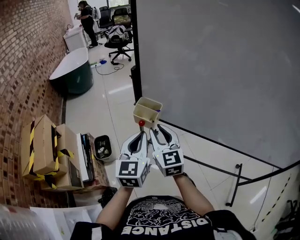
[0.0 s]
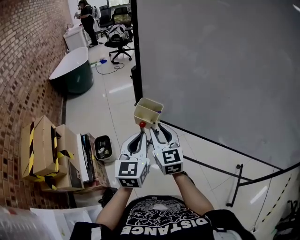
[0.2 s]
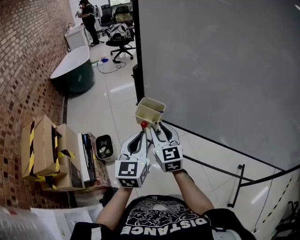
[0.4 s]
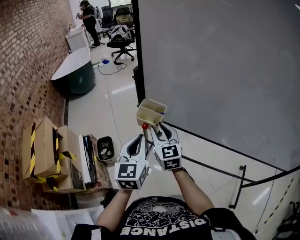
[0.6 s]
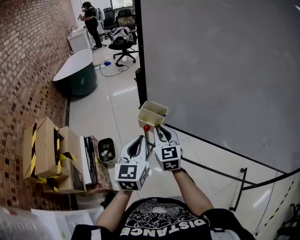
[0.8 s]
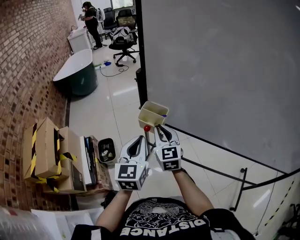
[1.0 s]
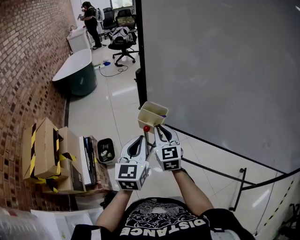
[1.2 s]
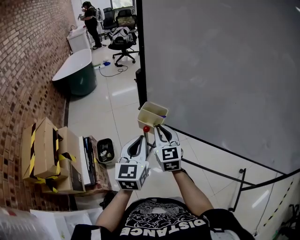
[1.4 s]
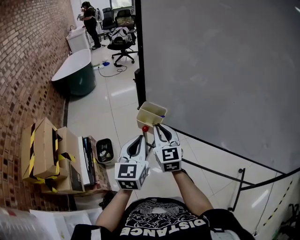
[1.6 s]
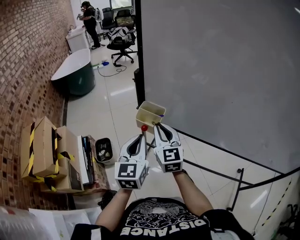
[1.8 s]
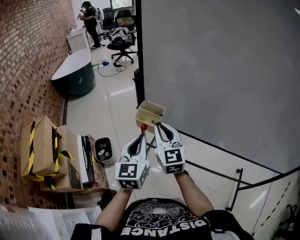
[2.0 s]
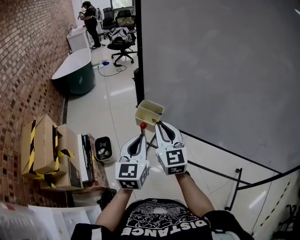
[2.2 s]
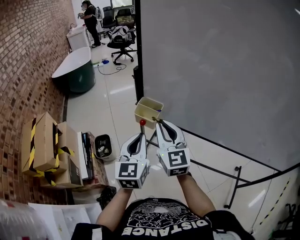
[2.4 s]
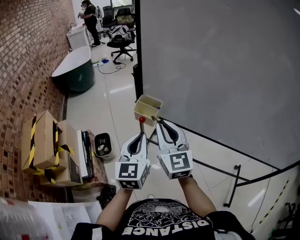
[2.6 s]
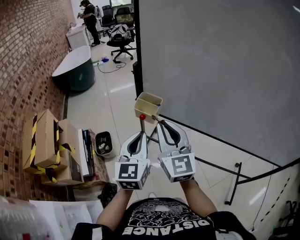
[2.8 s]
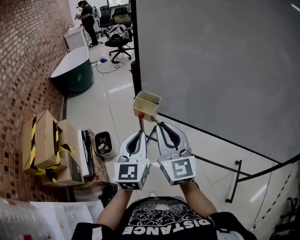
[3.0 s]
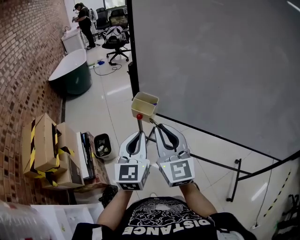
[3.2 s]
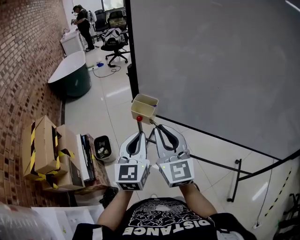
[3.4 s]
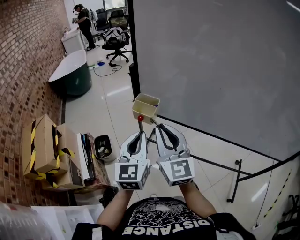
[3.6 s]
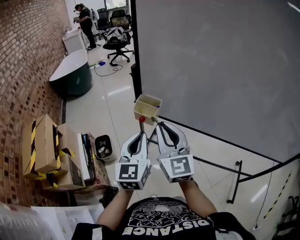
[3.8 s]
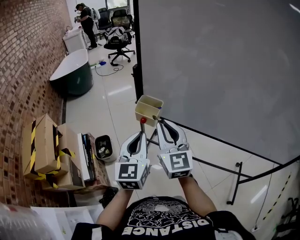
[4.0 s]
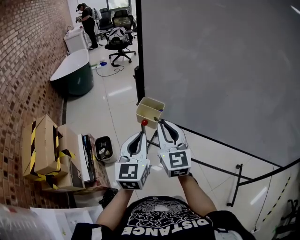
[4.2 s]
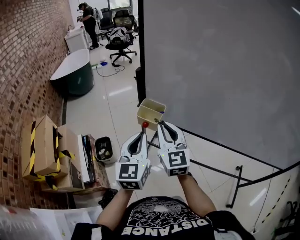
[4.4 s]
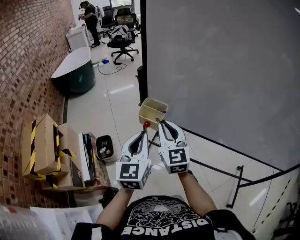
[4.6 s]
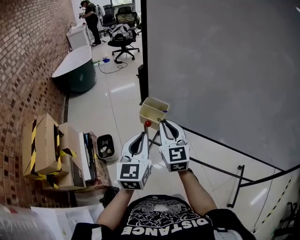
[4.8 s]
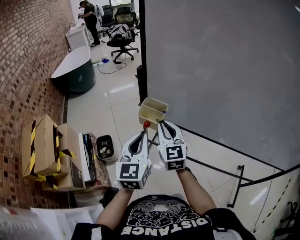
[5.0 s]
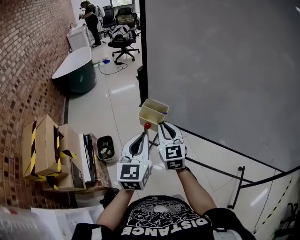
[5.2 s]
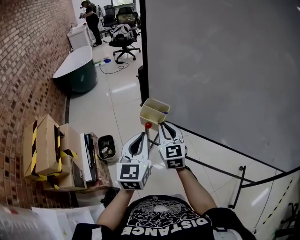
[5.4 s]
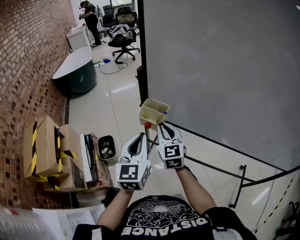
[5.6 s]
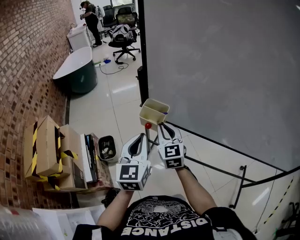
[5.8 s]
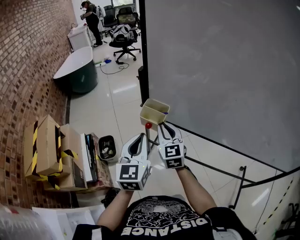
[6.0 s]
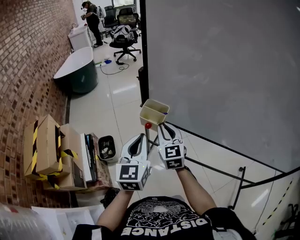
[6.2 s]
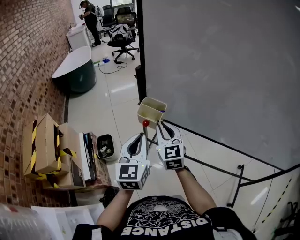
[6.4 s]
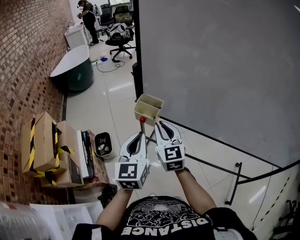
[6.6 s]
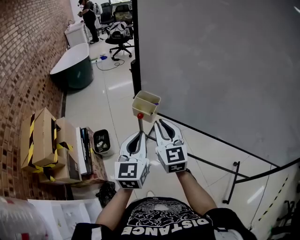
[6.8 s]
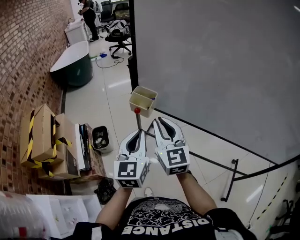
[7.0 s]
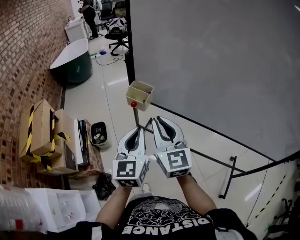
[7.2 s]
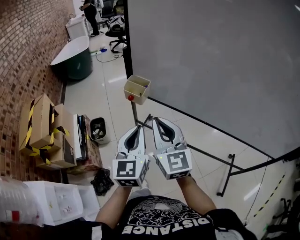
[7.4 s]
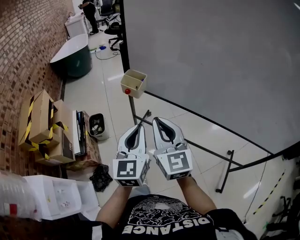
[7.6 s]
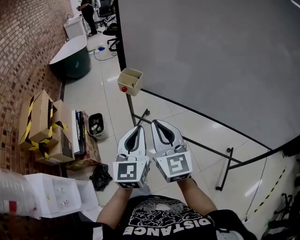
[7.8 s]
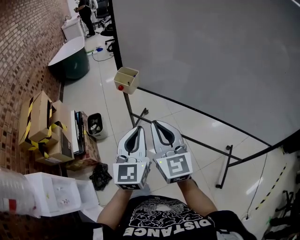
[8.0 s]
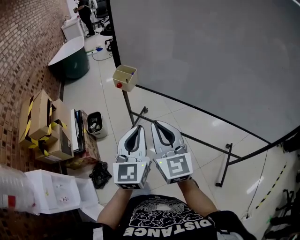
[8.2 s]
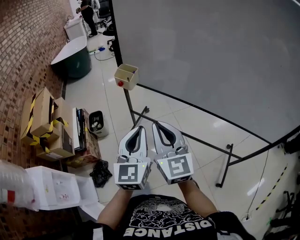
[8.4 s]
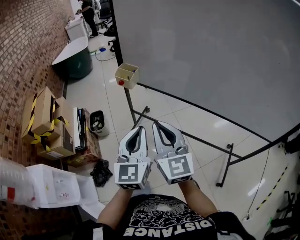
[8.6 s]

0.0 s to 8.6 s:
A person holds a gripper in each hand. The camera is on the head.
0.0 to 1.4 s: The right gripper travels forward by some 5 cm.
1.4 to 2.8 s: The right gripper goes approximately 20 cm upward and backward; the left gripper heads backward, covering approximately 5 cm.
2.8 to 4.4 s: The right gripper is displaced forward and downward by some 10 cm.
4.4 to 5.8 s: The right gripper heads downward and forward, covering approximately 10 cm.
5.8 to 7.2 s: The right gripper is displaced backward and upward by approximately 20 cm. The left gripper goes some 10 cm backward and to the right.
7.2 to 8.6 s: The right gripper travels backward by approximately 20 cm; the left gripper moves backward and to the right, about 20 cm.

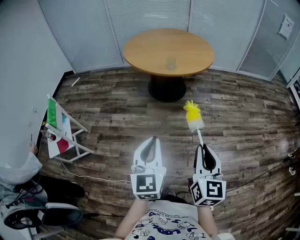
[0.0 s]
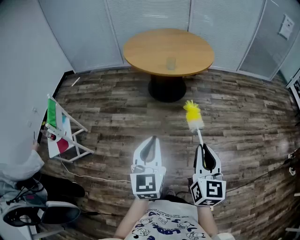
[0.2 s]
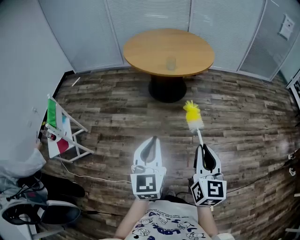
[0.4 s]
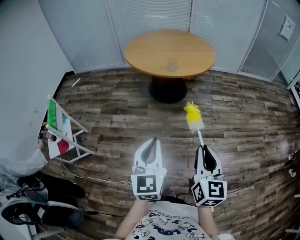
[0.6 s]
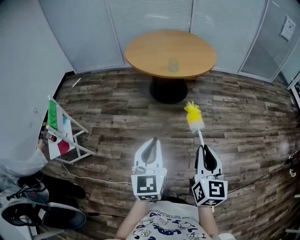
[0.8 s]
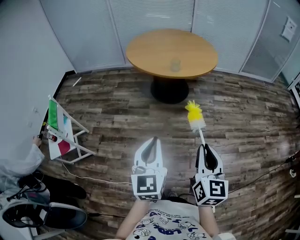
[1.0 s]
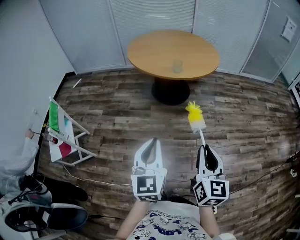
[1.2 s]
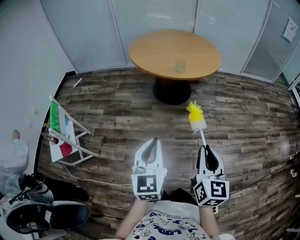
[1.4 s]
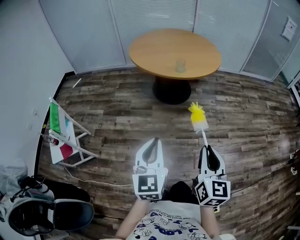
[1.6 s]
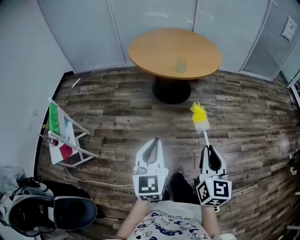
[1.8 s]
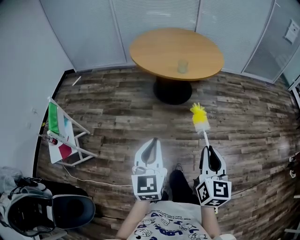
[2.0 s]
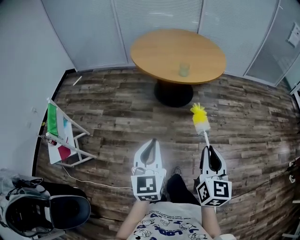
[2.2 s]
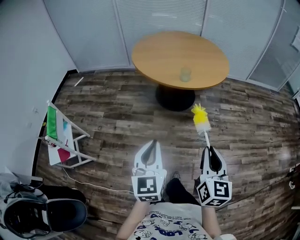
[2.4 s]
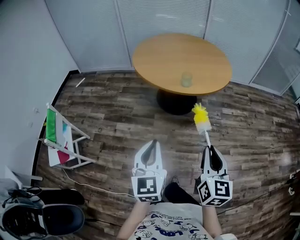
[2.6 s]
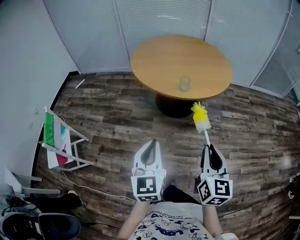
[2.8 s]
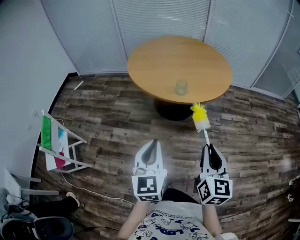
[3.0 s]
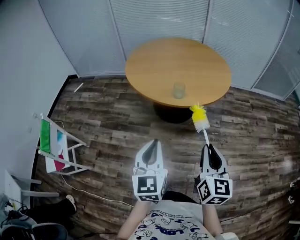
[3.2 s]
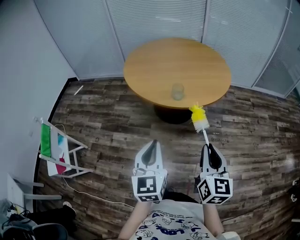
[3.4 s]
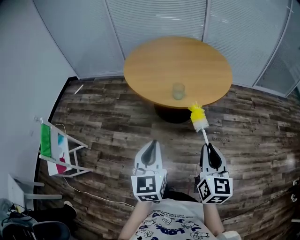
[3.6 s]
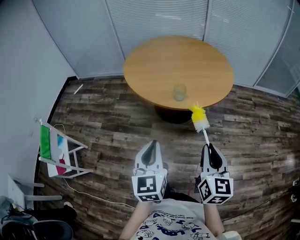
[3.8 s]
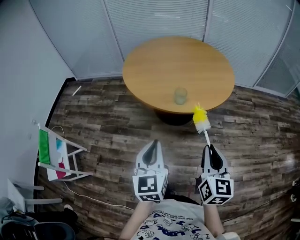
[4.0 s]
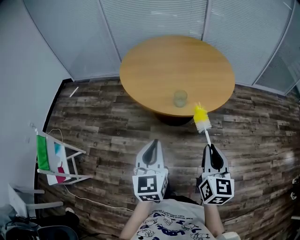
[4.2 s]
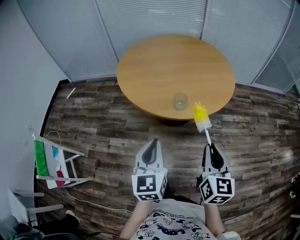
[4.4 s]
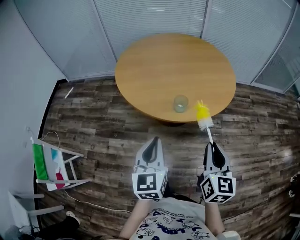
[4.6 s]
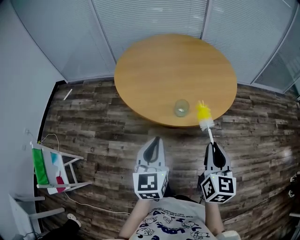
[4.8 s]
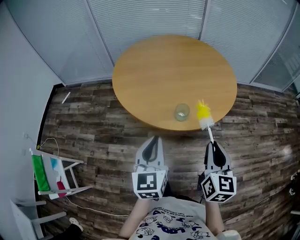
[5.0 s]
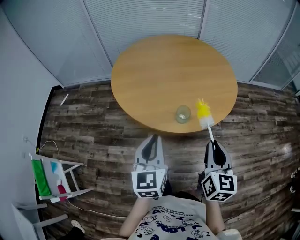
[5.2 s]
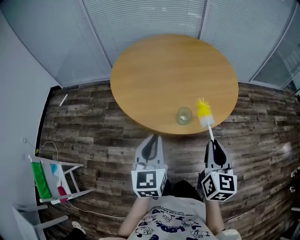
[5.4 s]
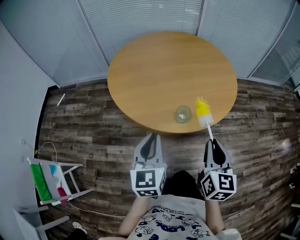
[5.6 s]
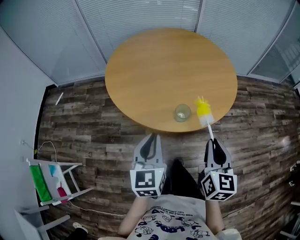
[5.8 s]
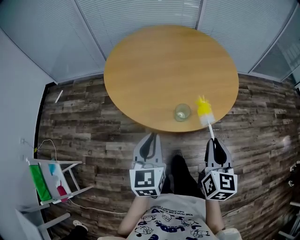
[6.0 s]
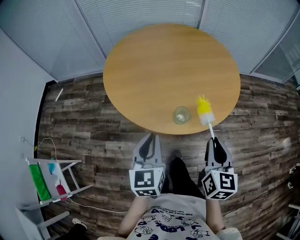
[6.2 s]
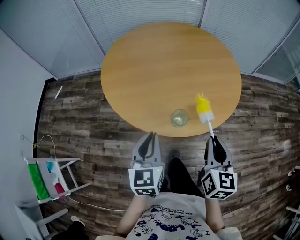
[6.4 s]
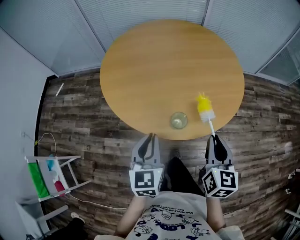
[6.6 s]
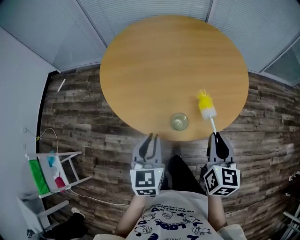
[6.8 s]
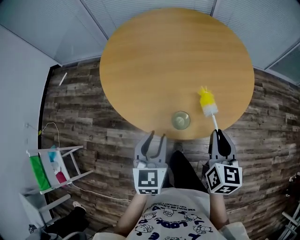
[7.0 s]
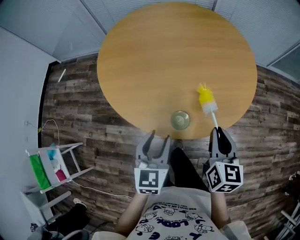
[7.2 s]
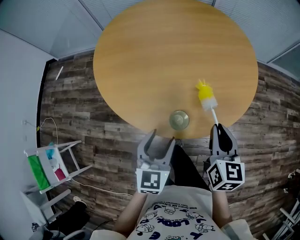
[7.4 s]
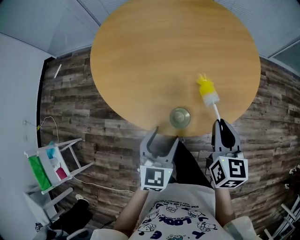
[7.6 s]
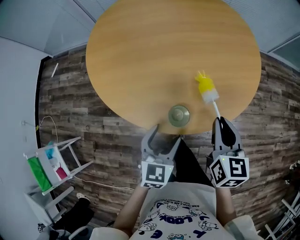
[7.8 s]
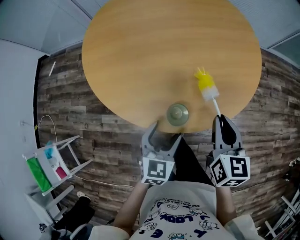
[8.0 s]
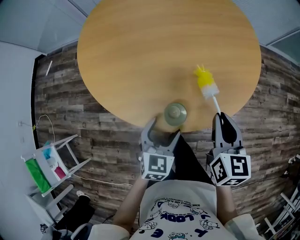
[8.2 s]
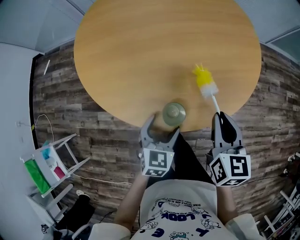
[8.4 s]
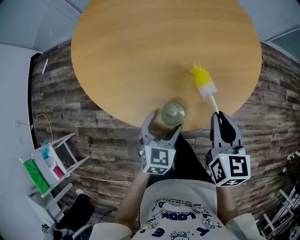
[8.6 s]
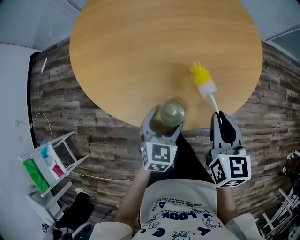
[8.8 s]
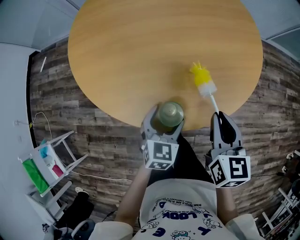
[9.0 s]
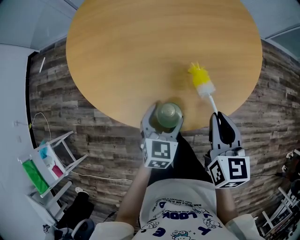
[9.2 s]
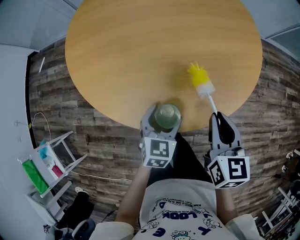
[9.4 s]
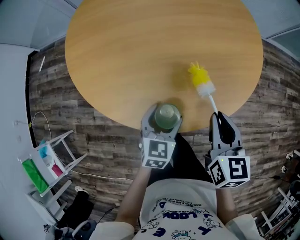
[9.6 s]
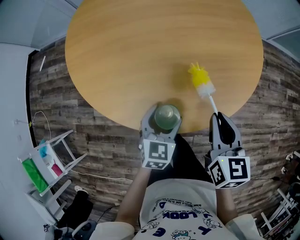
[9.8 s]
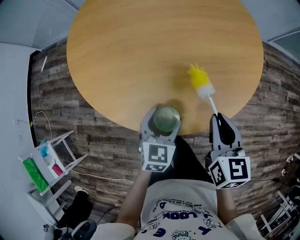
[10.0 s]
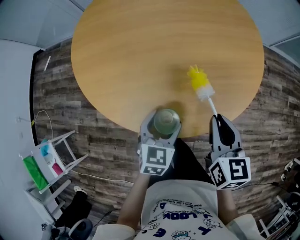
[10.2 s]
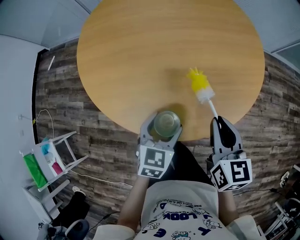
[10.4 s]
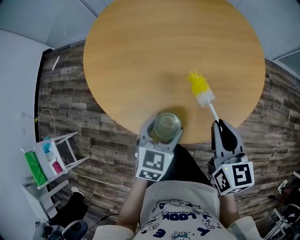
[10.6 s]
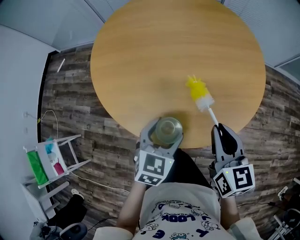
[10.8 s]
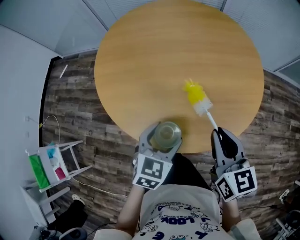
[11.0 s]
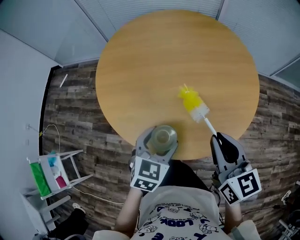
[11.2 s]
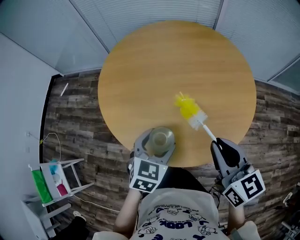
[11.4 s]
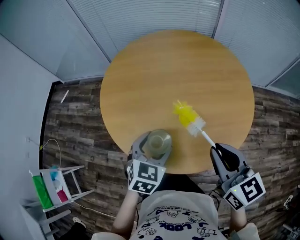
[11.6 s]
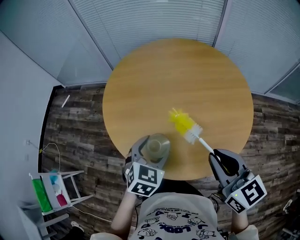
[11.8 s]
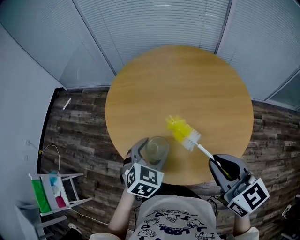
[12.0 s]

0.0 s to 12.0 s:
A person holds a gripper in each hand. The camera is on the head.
0.0 to 1.6 s: Both grippers travel together to the left, some 5 cm.
1.6 to 3.0 s: The grippers both shift forward by some 20 cm.
3.0 to 4.4 s: The grippers both shift forward by some 15 cm.
4.4 to 6.0 s: The two grippers go some 15 cm forward.
6.0 to 7.6 s: The left gripper is displaced downward, to the right and forward by about 15 cm, and opens up, while the right gripper is displaced forward and downward by roughly 15 cm.
7.6 to 9.0 s: The left gripper moves downward and forward, approximately 10 cm.
9.0 to 10.4 s: The grippers make only small movements.
10.4 to 12.0 s: The left gripper shifts roughly 15 cm to the left, upward and forward, and changes its angle by approximately 20 degrees. Meanwhile the right gripper is displaced upward and to the left by some 20 cm, and turns by approximately 30 degrees.

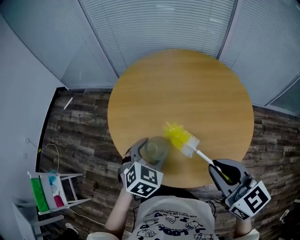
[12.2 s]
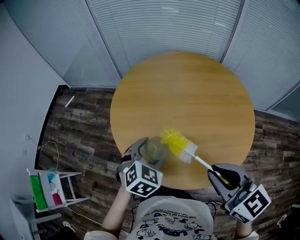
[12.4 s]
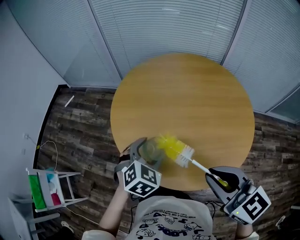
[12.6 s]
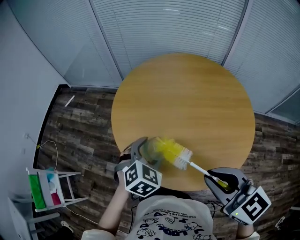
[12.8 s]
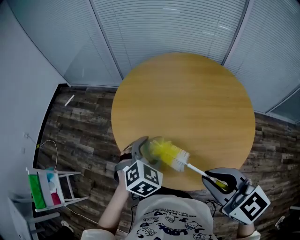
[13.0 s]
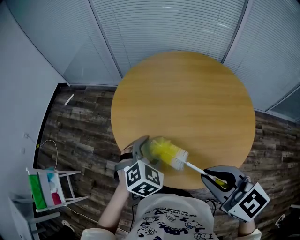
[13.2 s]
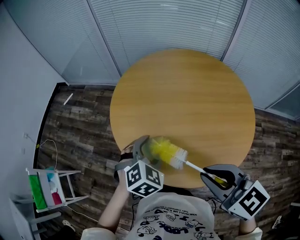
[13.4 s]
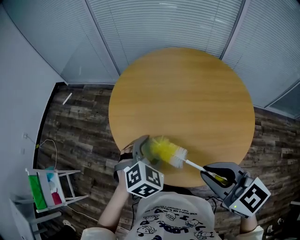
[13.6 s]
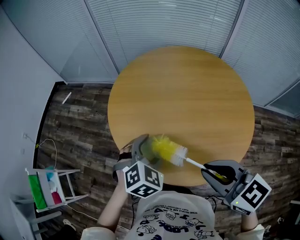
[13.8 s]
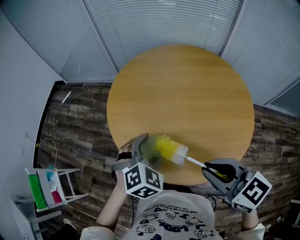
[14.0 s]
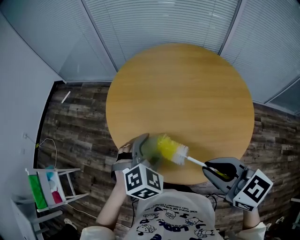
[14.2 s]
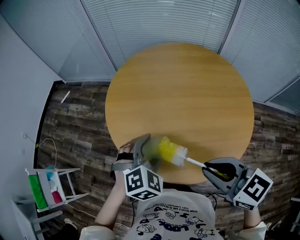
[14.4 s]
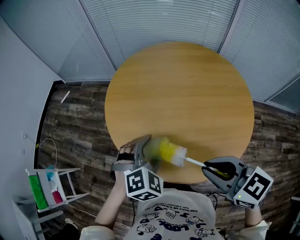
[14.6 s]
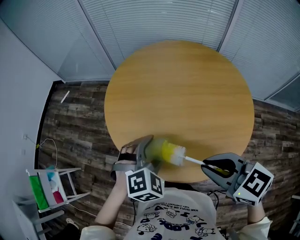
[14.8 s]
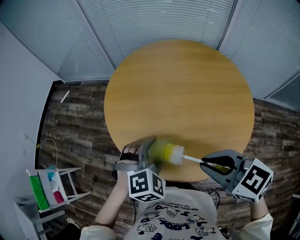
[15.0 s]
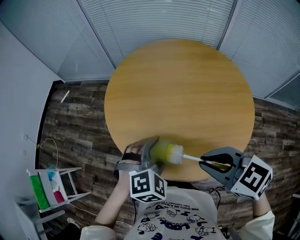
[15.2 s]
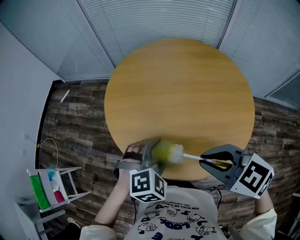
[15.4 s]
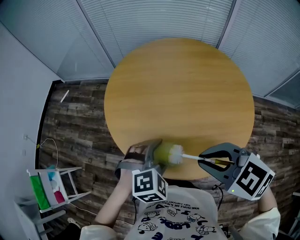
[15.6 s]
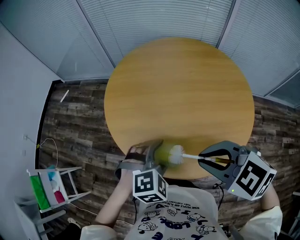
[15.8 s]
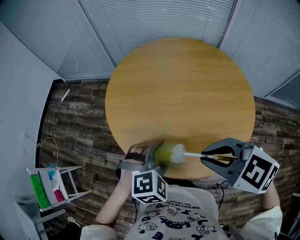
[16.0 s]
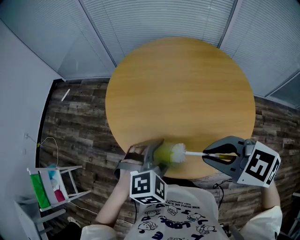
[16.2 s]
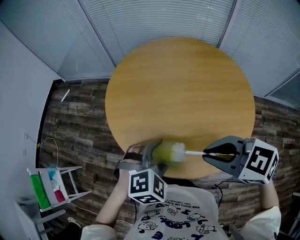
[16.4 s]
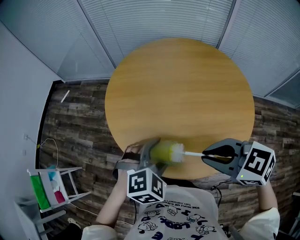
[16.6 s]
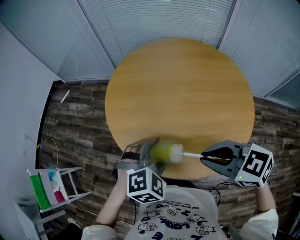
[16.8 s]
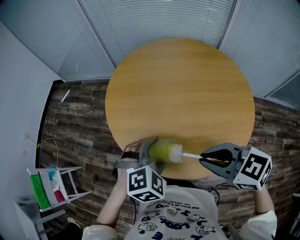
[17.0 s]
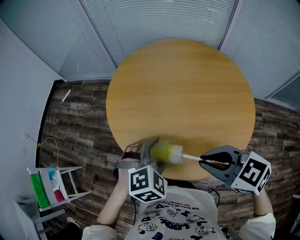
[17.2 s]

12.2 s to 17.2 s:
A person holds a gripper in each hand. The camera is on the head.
12.2 to 13.8 s: The grippers stay close to where they were, moving slightly.
13.8 to 15.6 s: The right gripper turns by approximately 30 degrees. Meanwhile the left gripper travels backward by approximately 5 cm, and turns by roughly 20 degrees.
15.6 to 17.2 s: The grippers make only small movements.
